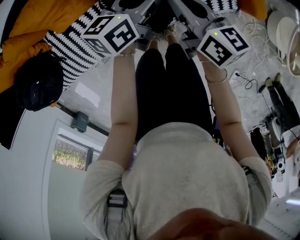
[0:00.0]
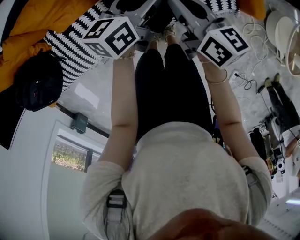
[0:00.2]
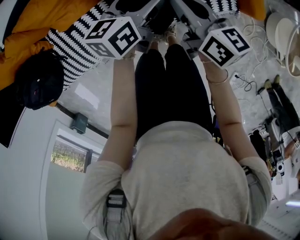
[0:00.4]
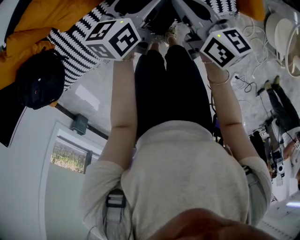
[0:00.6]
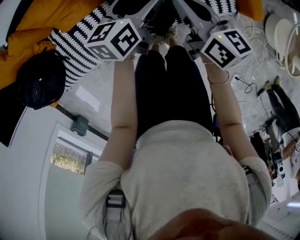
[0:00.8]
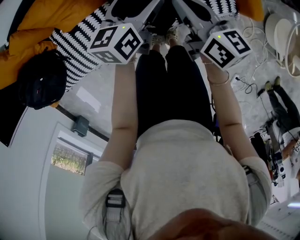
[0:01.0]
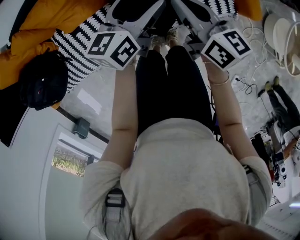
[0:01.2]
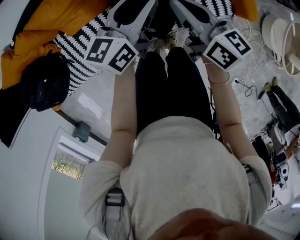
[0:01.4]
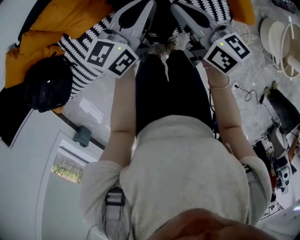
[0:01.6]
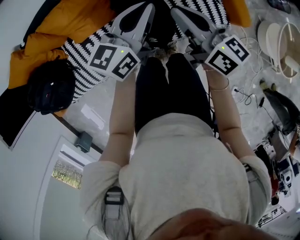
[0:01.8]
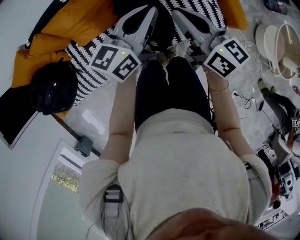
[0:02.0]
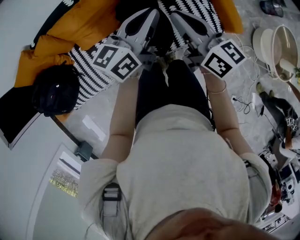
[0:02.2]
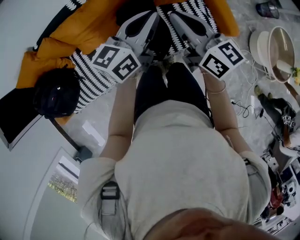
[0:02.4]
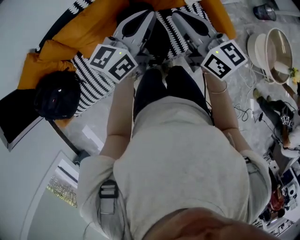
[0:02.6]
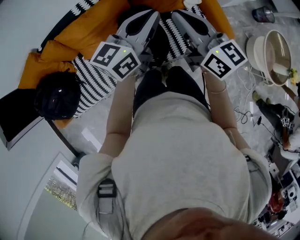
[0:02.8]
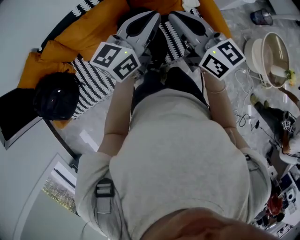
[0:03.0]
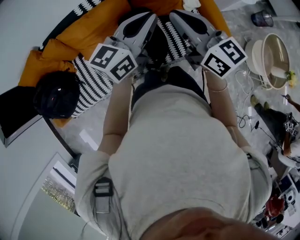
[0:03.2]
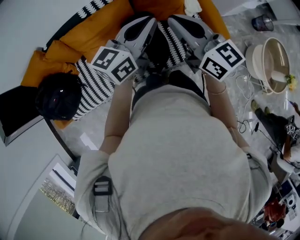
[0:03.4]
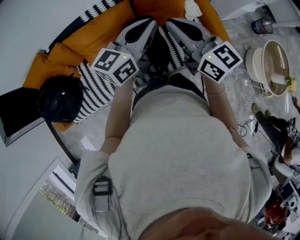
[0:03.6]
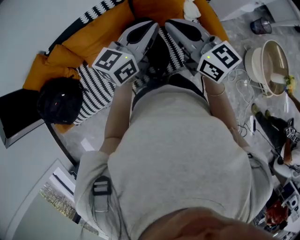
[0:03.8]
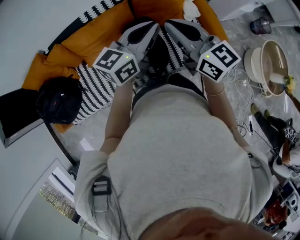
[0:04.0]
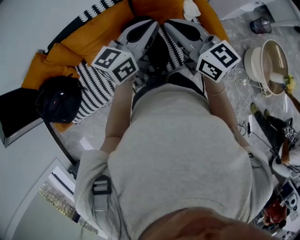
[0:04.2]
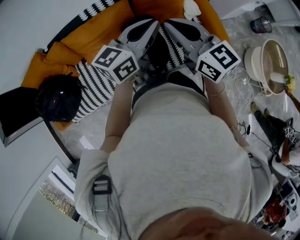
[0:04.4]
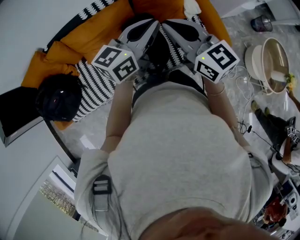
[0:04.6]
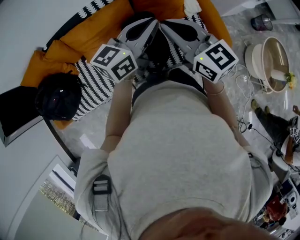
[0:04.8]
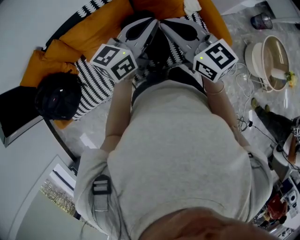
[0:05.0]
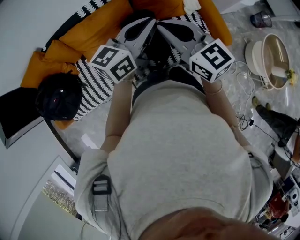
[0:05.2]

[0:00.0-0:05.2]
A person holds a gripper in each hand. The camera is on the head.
0:00.0 to 0:01.8: The grippers both shift upward by some 20 cm. The left gripper changes its angle by some 20 degrees, and closes up.
0:01.8 to 0:03.4: Both grippers travel together upward, roughly 15 cm. The right gripper turns by roughly 20 degrees.
0:03.4 to 0:05.2: The right gripper moves roughly 5 cm.

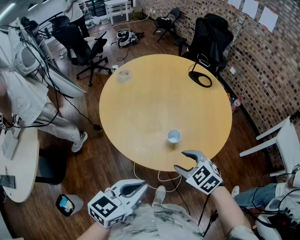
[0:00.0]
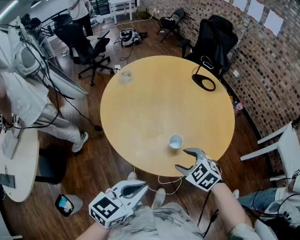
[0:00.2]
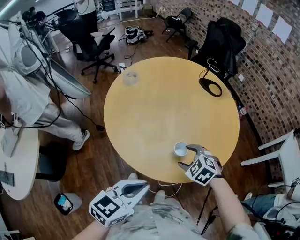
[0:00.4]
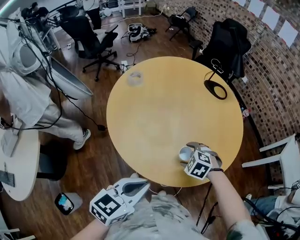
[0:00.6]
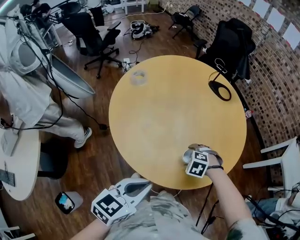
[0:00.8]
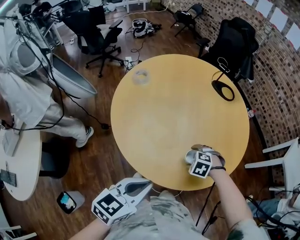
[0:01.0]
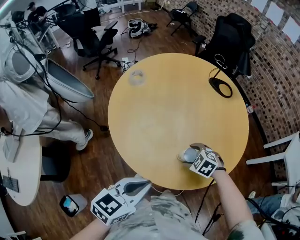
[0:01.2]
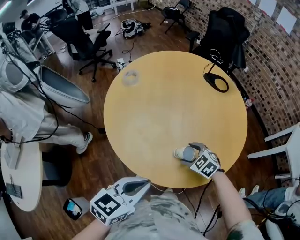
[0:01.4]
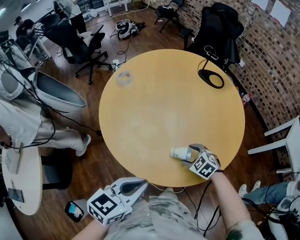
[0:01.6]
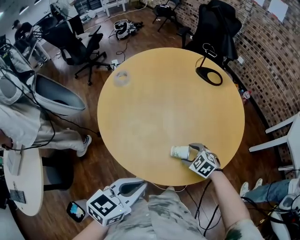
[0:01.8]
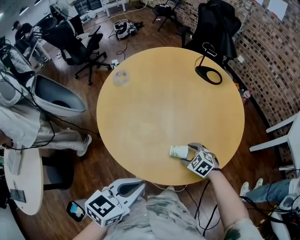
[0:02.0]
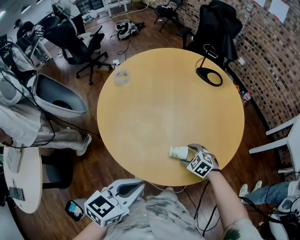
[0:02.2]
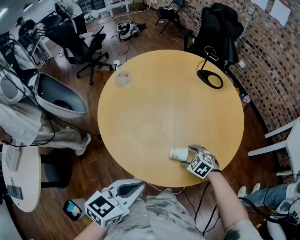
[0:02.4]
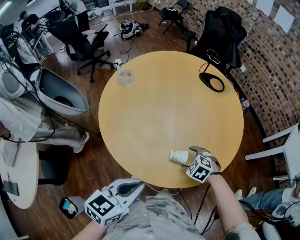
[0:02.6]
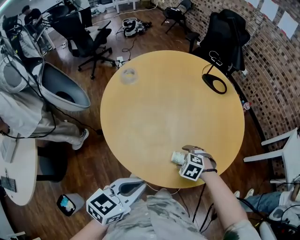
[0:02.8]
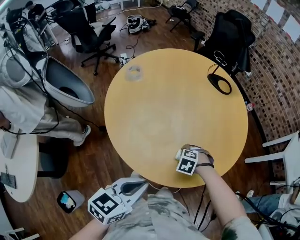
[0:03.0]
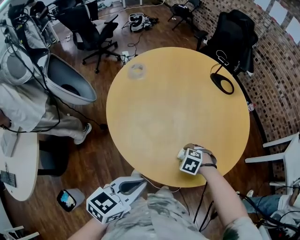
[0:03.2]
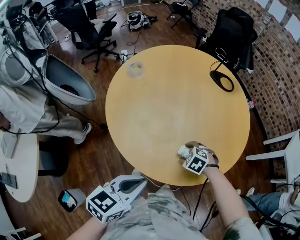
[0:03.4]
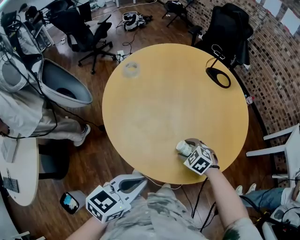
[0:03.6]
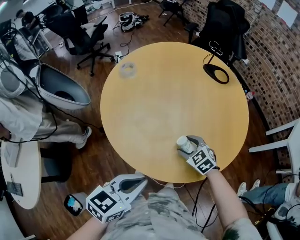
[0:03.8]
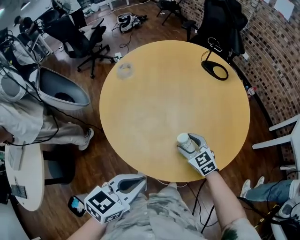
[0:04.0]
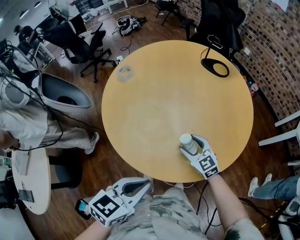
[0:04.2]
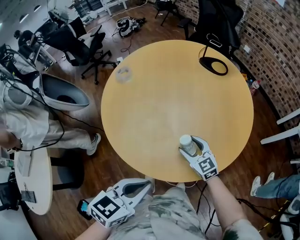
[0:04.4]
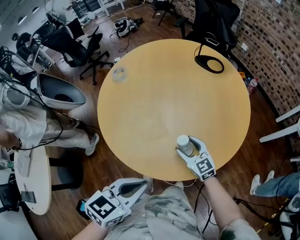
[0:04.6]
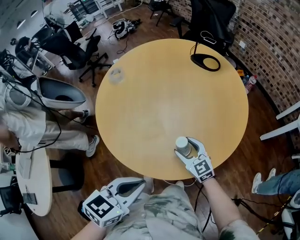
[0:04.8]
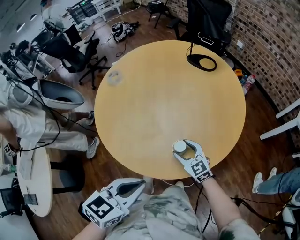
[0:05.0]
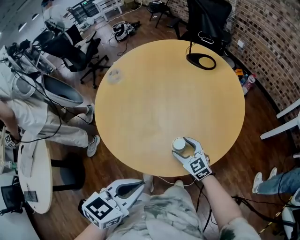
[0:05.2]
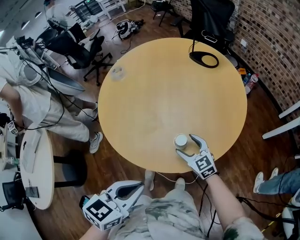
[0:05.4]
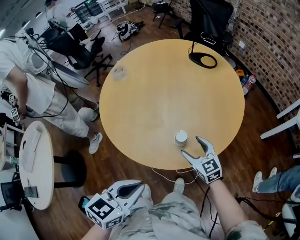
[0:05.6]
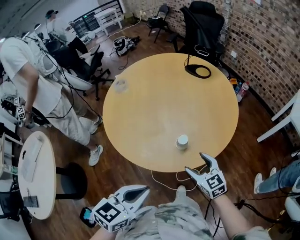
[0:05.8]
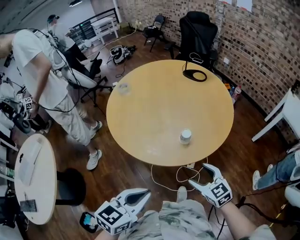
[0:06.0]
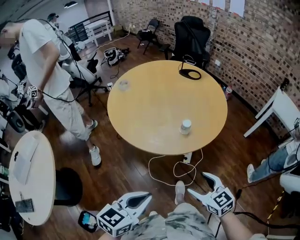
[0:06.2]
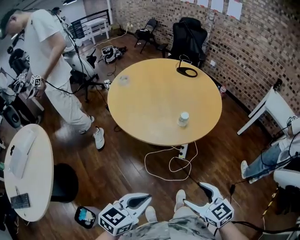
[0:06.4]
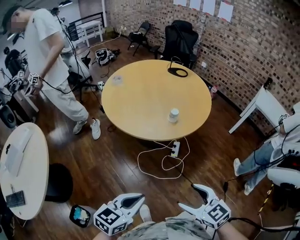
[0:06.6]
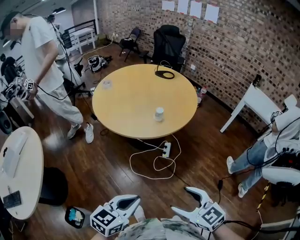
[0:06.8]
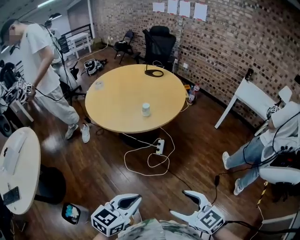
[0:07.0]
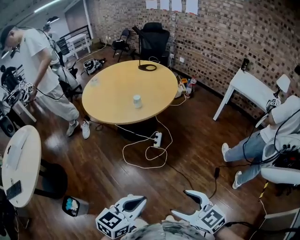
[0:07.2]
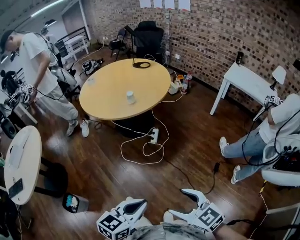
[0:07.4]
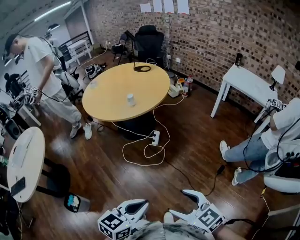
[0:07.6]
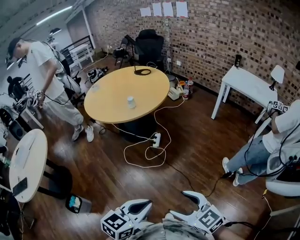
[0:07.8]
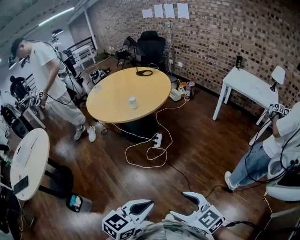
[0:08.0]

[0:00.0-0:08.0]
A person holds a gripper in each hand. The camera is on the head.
0:00.0 to 0:01.6: The right gripper travels downward by approximately 15 cm, while the left gripper changes place by about 15 cm.
0:01.6 to 0:03.2: The right gripper shifts by about 5 cm, and turns by roughly 30 degrees.
0:03.2 to 0:04.8: The right gripper moves upward, about 5 cm, and points its fingers some 60 degrees further upward, while the left gripper shifts by about 10 cm.
0:04.8 to 0:06.4: The grippers both shift backward by approximately 40 cm.
0:06.4 to 0:08.0: The two grippers travel together, backward and to the right, roughly 50 cm.

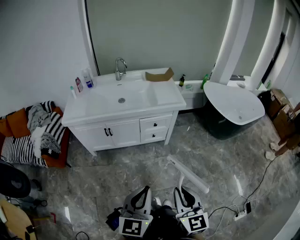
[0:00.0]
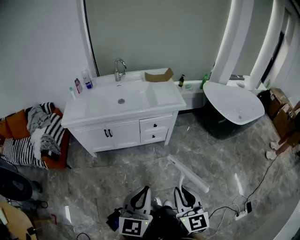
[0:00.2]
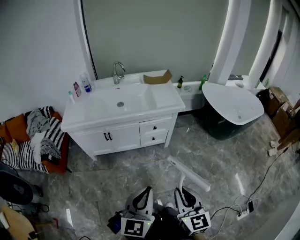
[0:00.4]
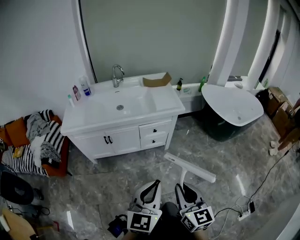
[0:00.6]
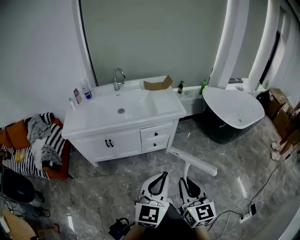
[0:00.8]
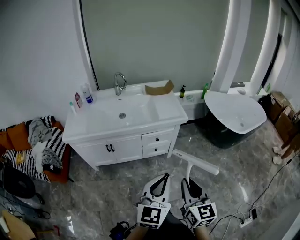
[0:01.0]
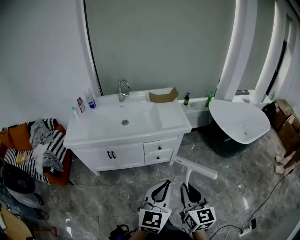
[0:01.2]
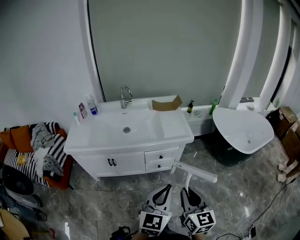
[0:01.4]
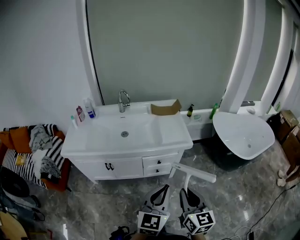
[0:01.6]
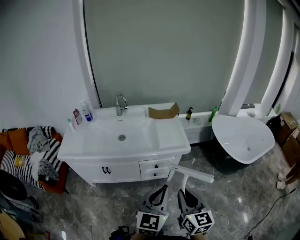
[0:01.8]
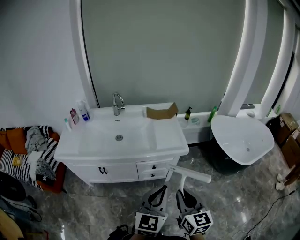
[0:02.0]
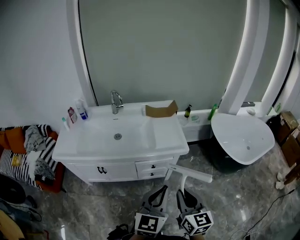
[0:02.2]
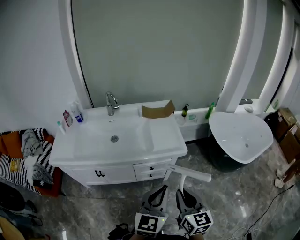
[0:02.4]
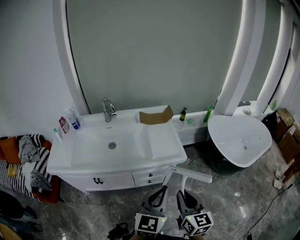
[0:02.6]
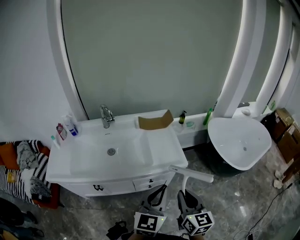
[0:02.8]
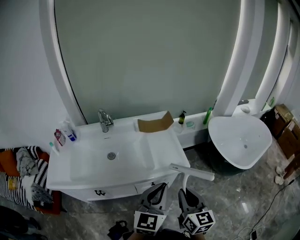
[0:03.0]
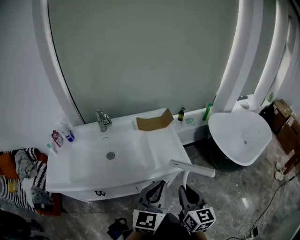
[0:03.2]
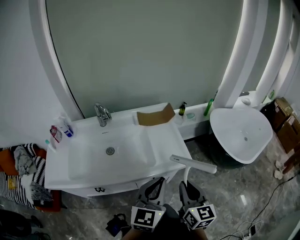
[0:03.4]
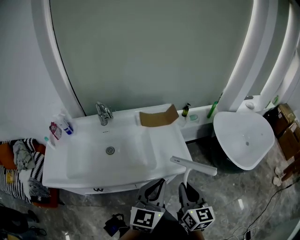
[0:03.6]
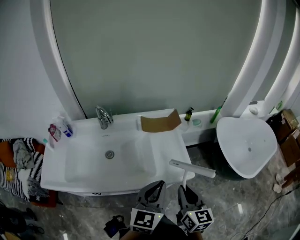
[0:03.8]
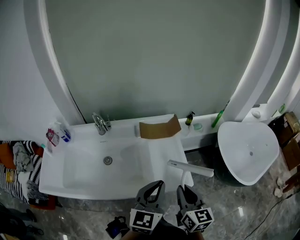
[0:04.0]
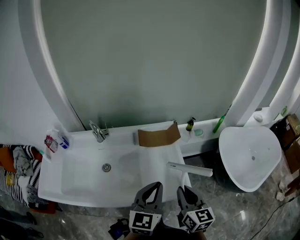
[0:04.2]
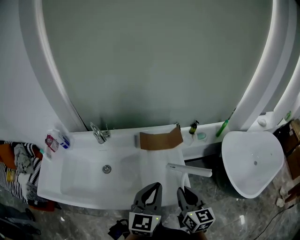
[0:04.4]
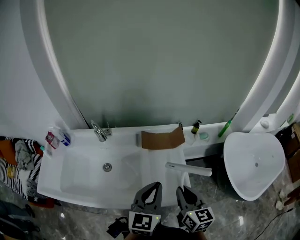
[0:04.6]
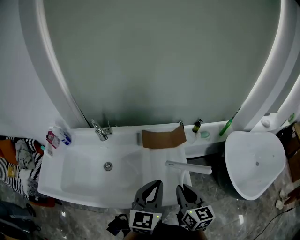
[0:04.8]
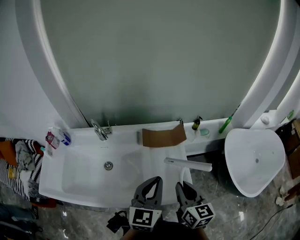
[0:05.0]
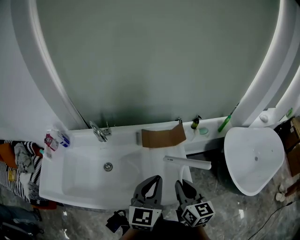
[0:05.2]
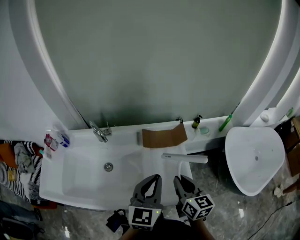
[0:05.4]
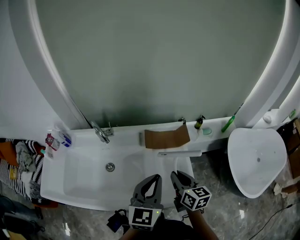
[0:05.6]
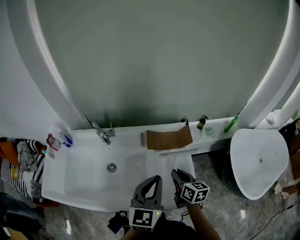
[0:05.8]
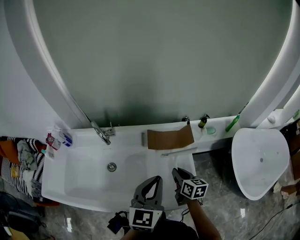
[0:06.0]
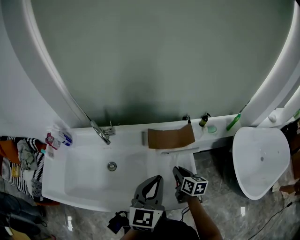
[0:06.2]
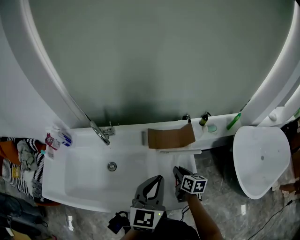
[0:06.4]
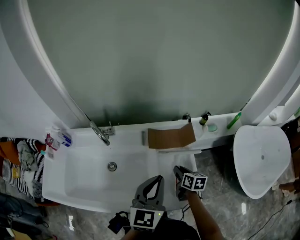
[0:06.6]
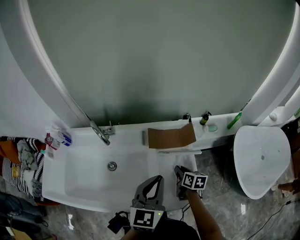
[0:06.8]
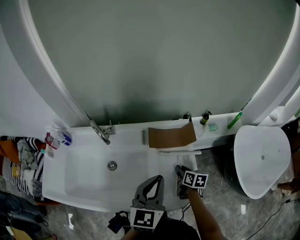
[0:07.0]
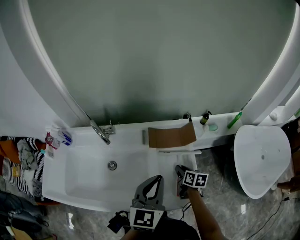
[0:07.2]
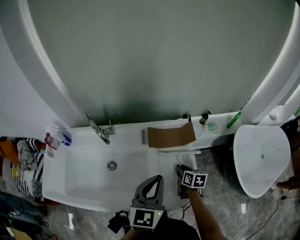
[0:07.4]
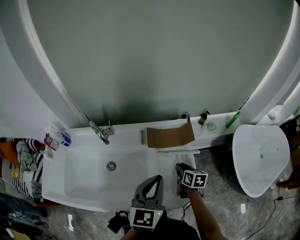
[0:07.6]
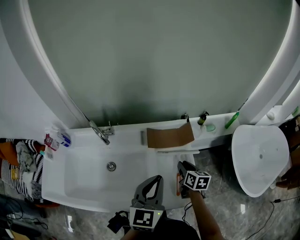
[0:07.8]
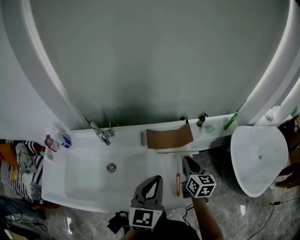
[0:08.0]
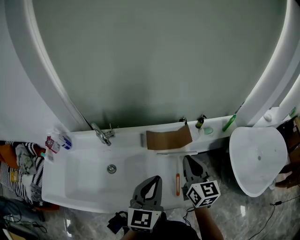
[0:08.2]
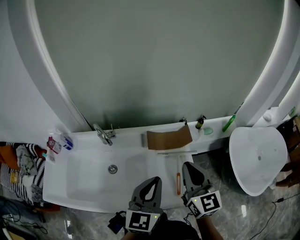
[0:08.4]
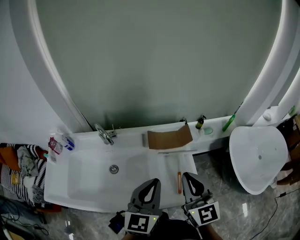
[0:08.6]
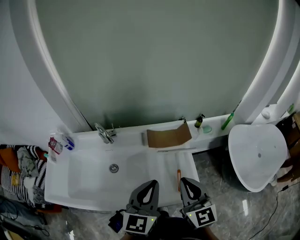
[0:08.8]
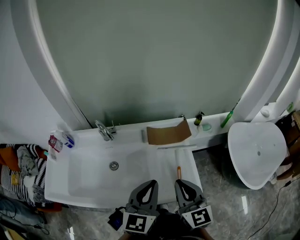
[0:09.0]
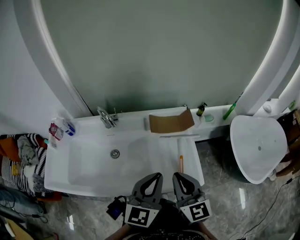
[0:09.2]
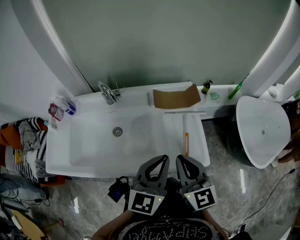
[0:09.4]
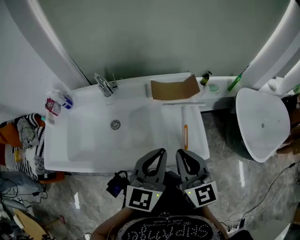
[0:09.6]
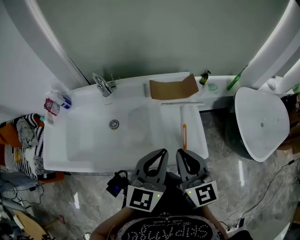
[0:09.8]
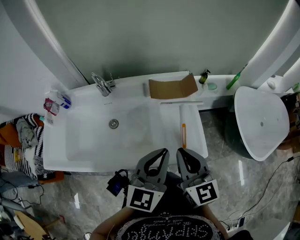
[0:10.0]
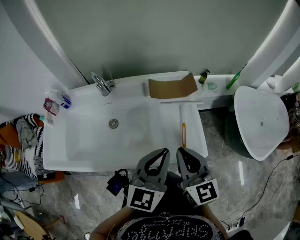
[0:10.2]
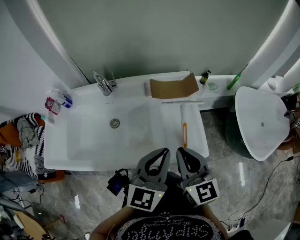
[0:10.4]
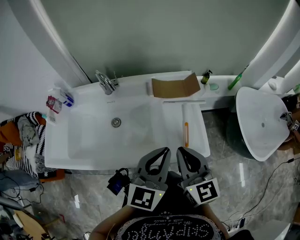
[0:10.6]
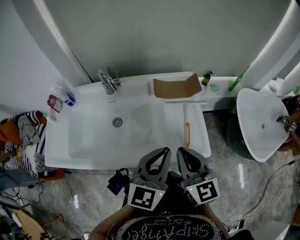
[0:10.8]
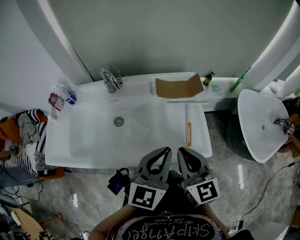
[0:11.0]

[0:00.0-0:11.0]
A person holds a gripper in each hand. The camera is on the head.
0:00.0 to 0:01.6: Both grippers move forward, some 25 cm.
0:01.6 to 0:03.2: Both grippers move forward, roughly 20 cm.
0:03.2 to 0:04.8: The two grippers go some 20 cm forward.
0:04.8 to 0:06.2: The left gripper travels forward by approximately 5 cm. Meanwhile the right gripper is displaced downward and forward by roughly 20 cm, and changes its angle by some 20 degrees.
0:06.2 to 0:07.8: The grippers make only small movements.
0:07.8 to 0:09.4: The right gripper heads backward, upward and to the left, covering some 30 cm, and changes its angle by some 40 degrees; the left gripper shifts approximately 10 cm backward.
0:09.4 to 0:11.0: The grippers make only small movements.
